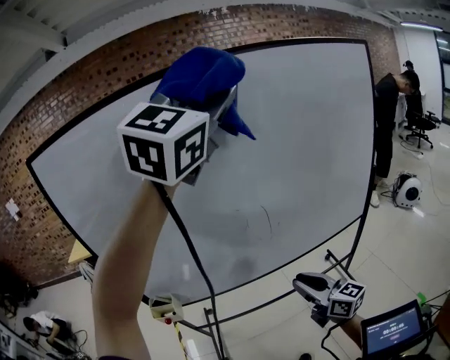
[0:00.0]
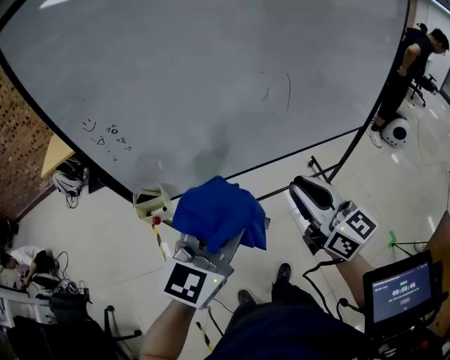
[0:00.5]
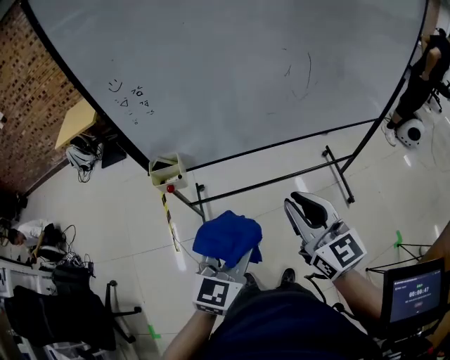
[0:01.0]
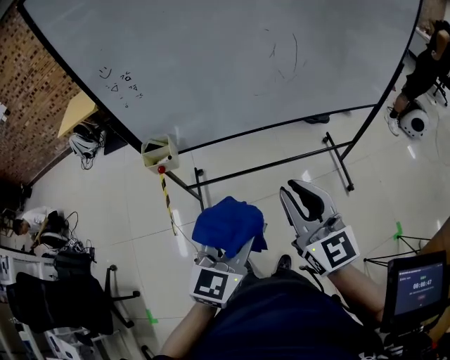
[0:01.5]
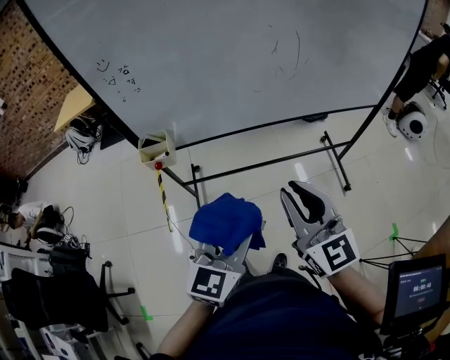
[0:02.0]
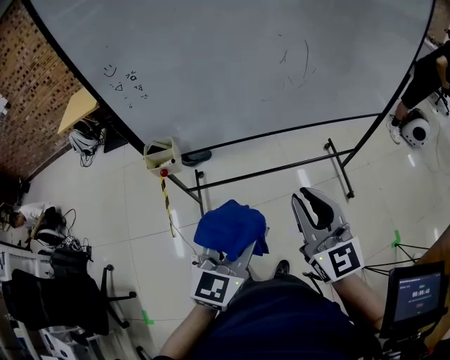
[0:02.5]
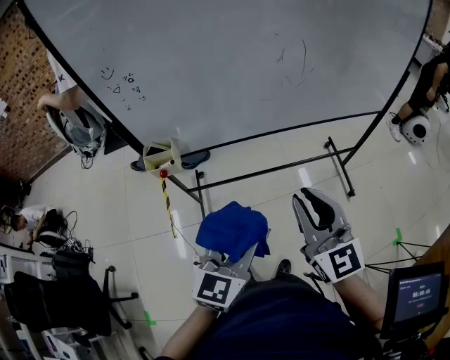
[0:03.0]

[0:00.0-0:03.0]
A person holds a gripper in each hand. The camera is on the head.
0:00.0 to 0:01.5: The right gripper shifts about 20 cm backward and to the left, and changes its angle by some 30 degrees. The left gripper is displaced downward and backward by some 60 cm, and changes its angle by roughly 40 degrees.
0:01.5 to 0:03.0: There are only small adjustments of the grippers.

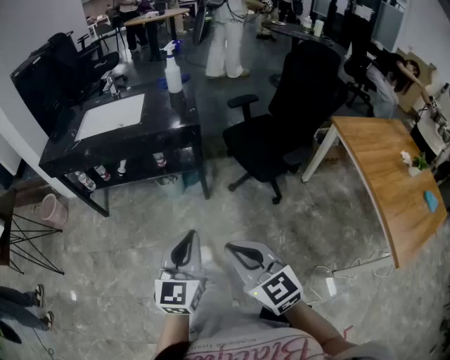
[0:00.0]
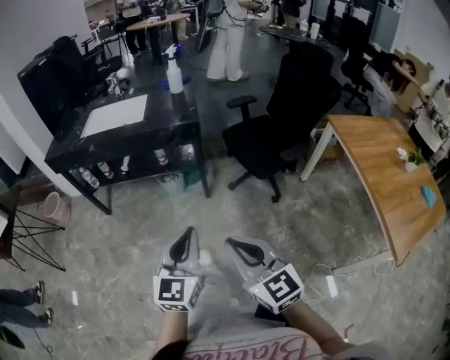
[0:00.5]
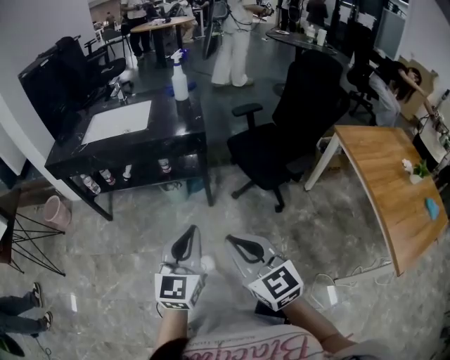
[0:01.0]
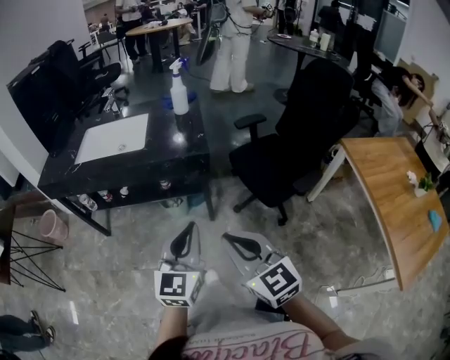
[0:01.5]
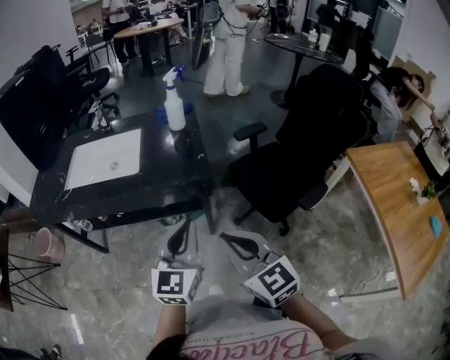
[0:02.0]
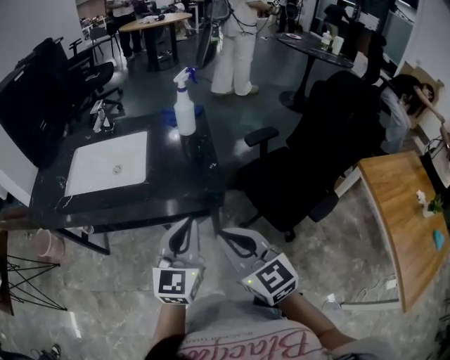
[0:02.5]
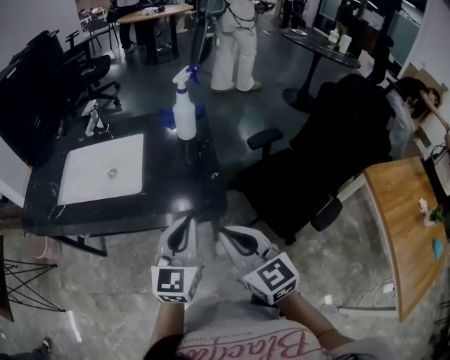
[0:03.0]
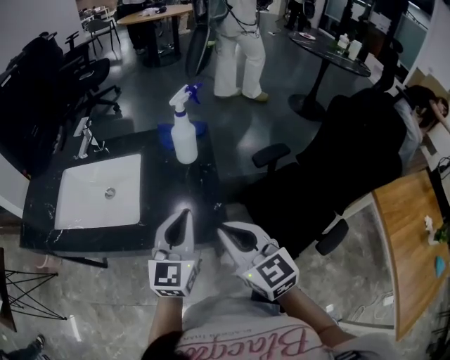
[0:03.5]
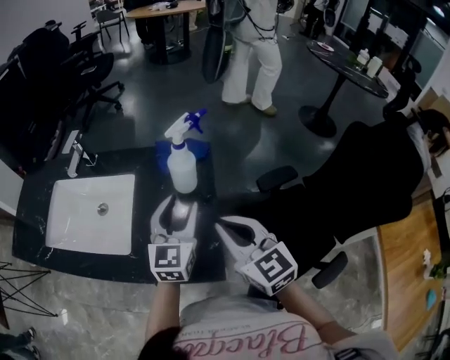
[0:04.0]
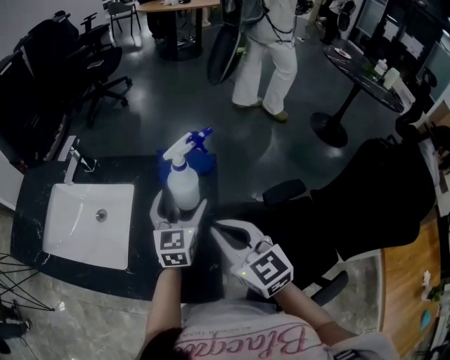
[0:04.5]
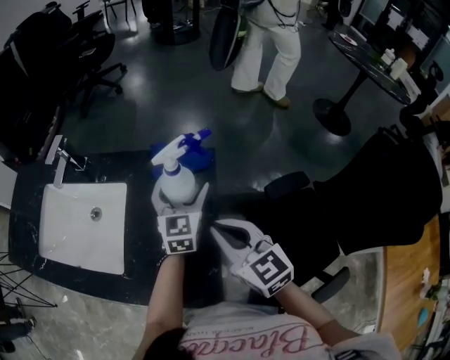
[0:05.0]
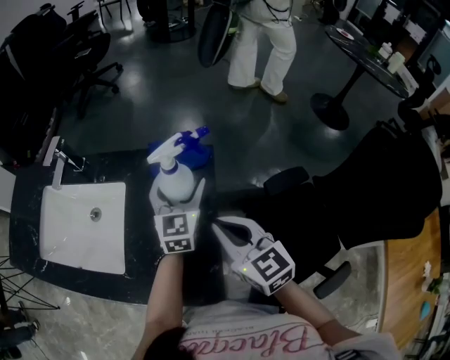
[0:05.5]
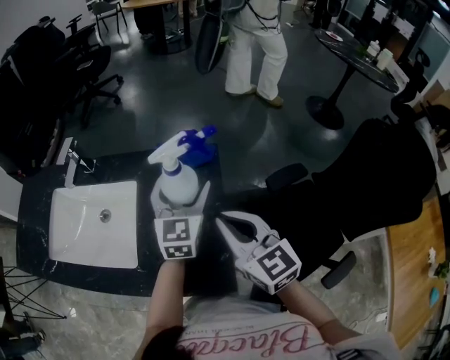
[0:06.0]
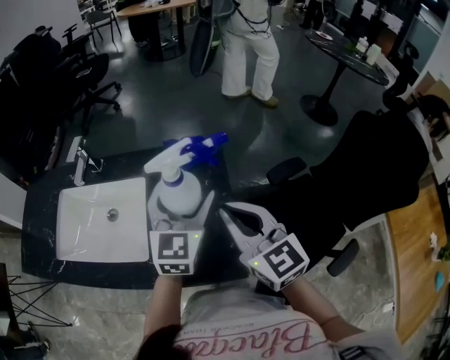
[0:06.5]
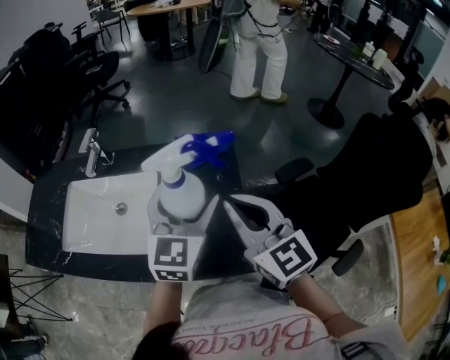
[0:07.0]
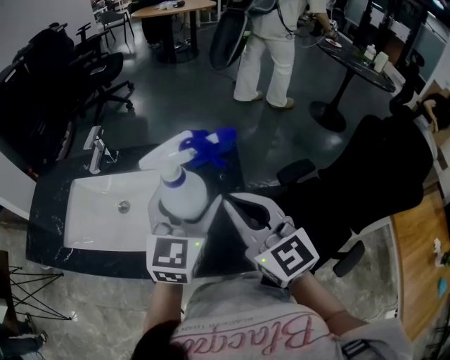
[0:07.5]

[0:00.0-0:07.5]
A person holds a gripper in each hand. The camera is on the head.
0:00.0 to 0:02.0: Both grippers move forward, about 25 cm.
0:02.0 to 0:04.0: The grippers both shift forward by approximately 35 cm. The left gripper opens up.
0:04.0 to 0:05.5: The right gripper is displaced forward by roughly 5 cm; the left gripper travels forward by about 15 cm, and opens up.
0:05.5 to 0:07.5: The left gripper is displaced backward, upward and to the left by about 20 cm; the right gripper moves upward, to the left and backward, roughly 15 cm, and rotates some 20 degrees.

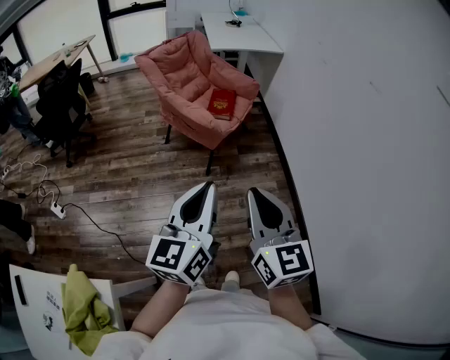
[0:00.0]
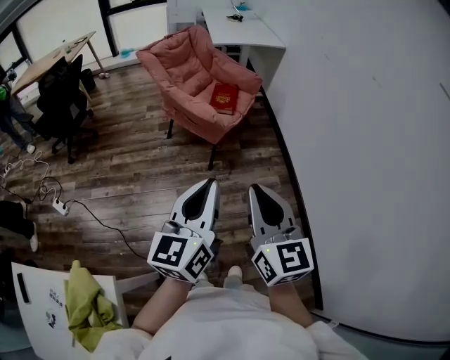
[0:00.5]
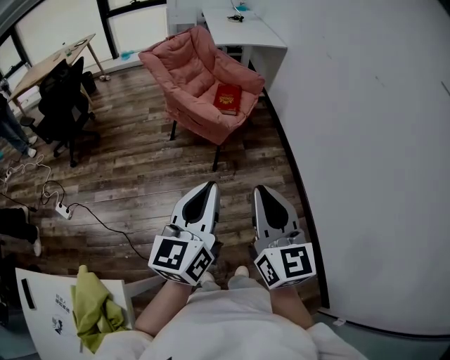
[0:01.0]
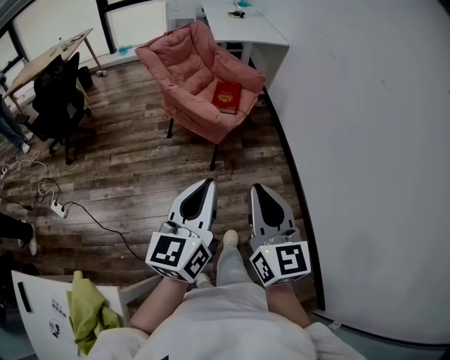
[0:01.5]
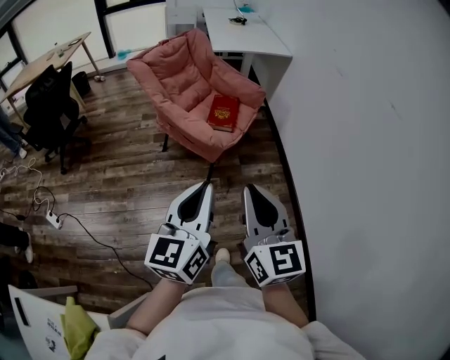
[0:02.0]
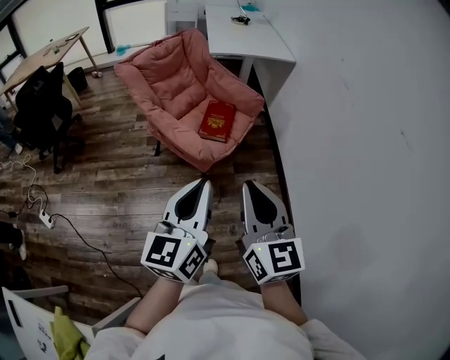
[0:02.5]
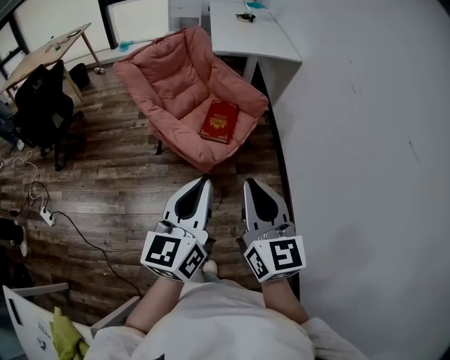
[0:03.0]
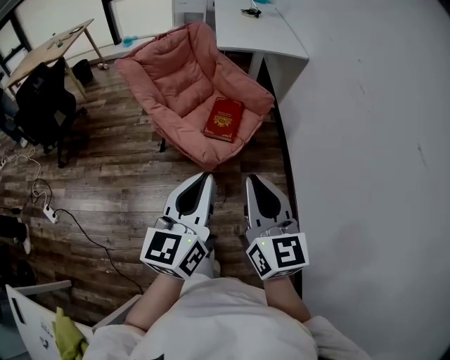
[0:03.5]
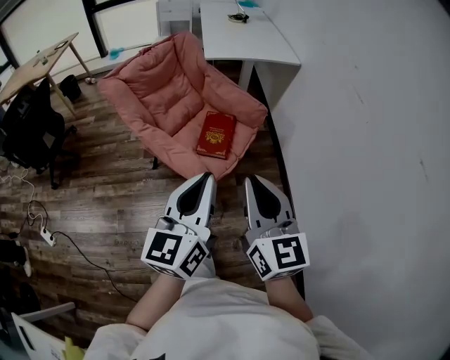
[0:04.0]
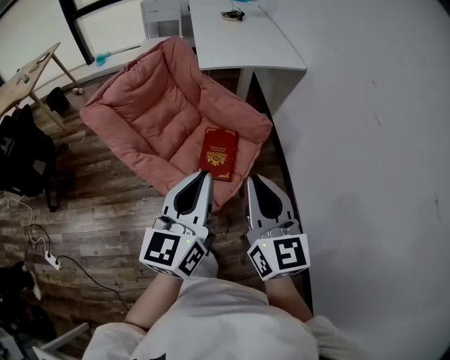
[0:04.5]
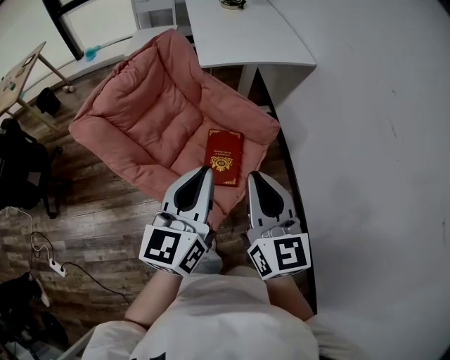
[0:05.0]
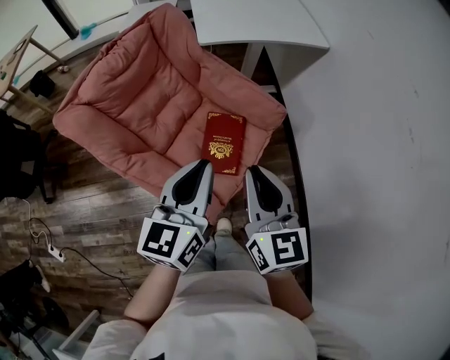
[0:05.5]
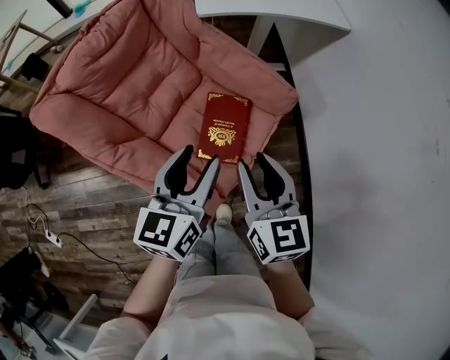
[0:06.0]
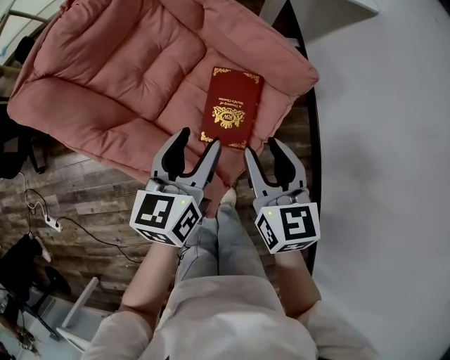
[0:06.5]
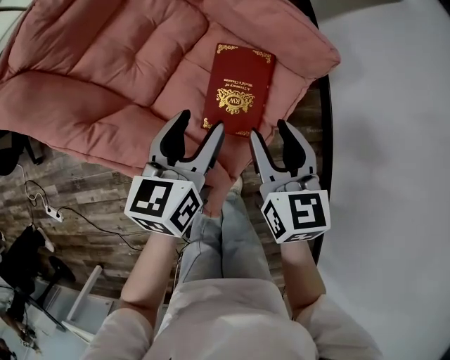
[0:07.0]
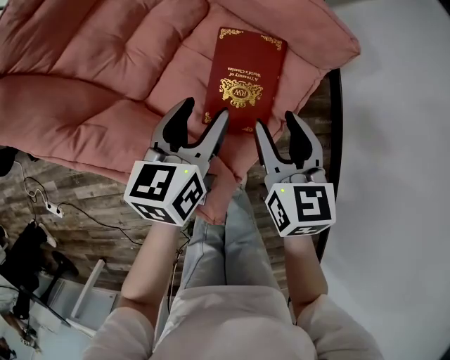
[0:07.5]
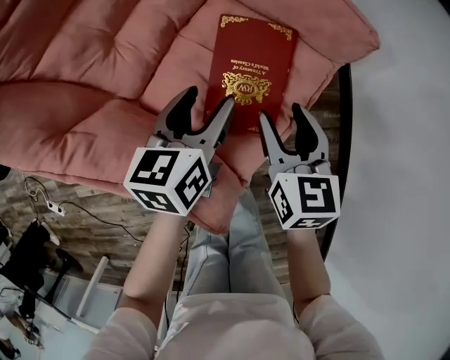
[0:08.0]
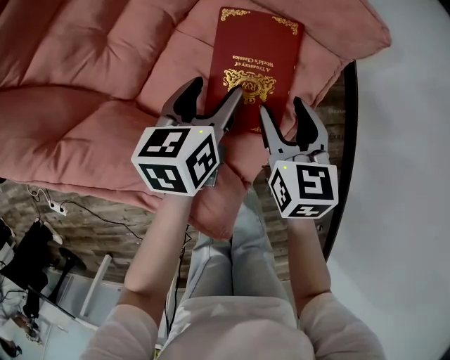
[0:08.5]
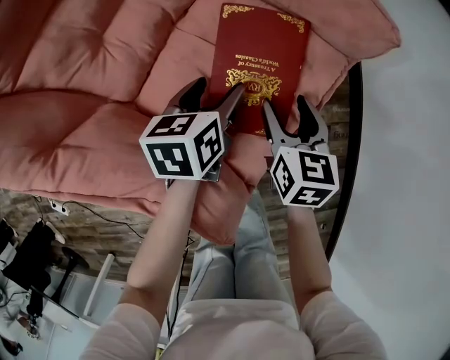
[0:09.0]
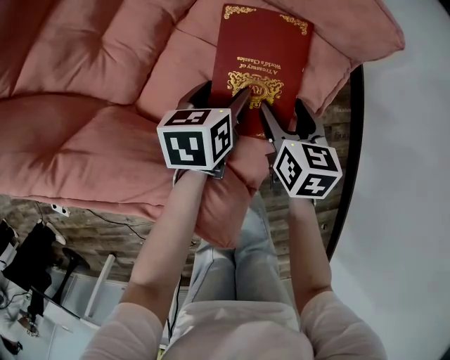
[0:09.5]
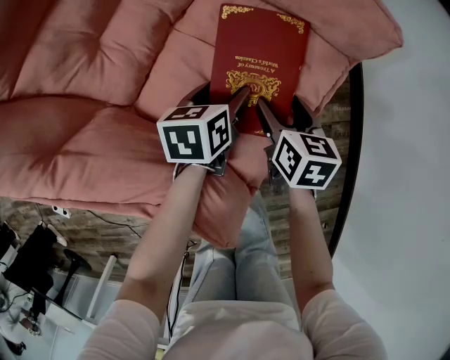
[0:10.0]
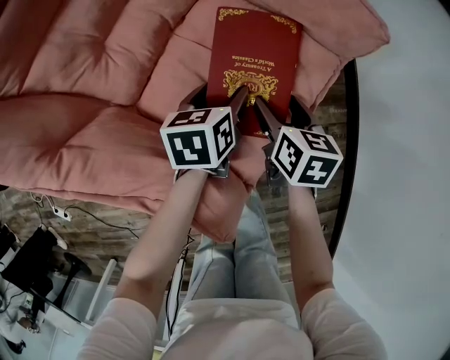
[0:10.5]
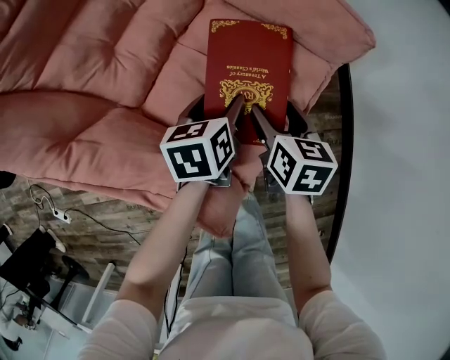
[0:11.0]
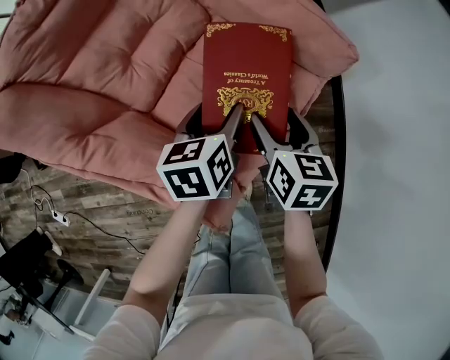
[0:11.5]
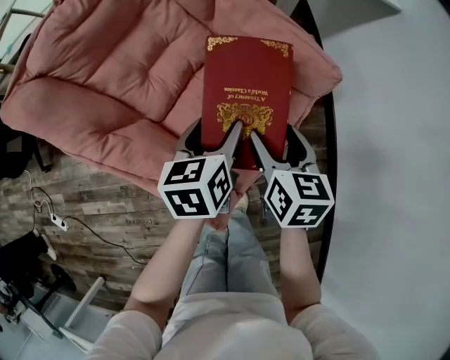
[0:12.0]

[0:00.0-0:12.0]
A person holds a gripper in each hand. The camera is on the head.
0:00.0 to 0:02.0: The grippers both shift forward by some 15 cm.
0:02.0 to 0:04.0: Both grippers move forward, some 25 cm.
0:04.0 to 0:06.0: Both grippers travel together forward and downward, about 40 cm. The left gripper opens its fingers. Meanwhile the right gripper opens its fingers.
0:06.0 to 0:08.0: Both grippers travel together downward, some 25 cm. The left gripper swivels approximately 20 degrees.
0:08.0 to 0:10.0: Both grippers move downward, roughly 15 cm. The right gripper changes its angle by some 20 degrees.
0:10.0 to 0:12.0: The two grippers go approximately 20 cm upward. The left gripper changes its angle by some 20 degrees.

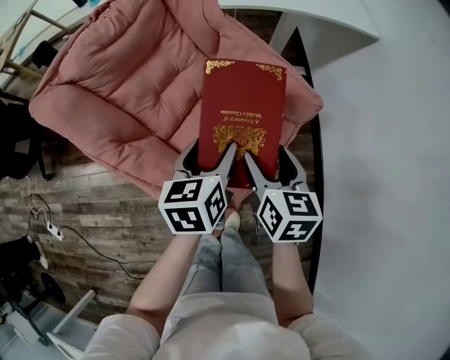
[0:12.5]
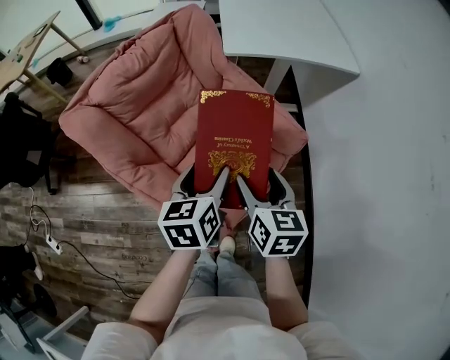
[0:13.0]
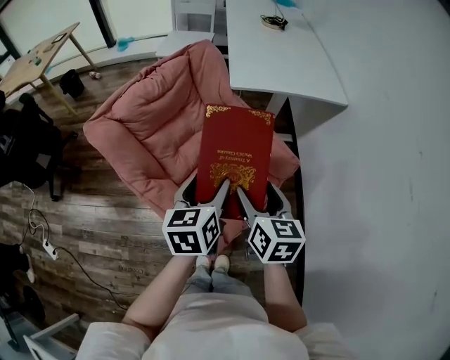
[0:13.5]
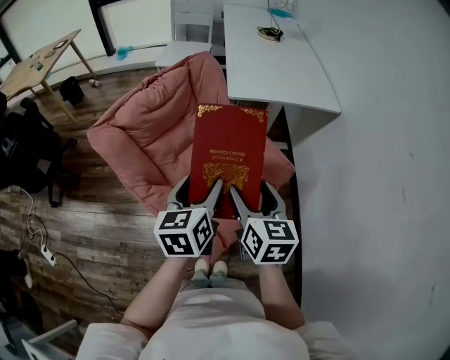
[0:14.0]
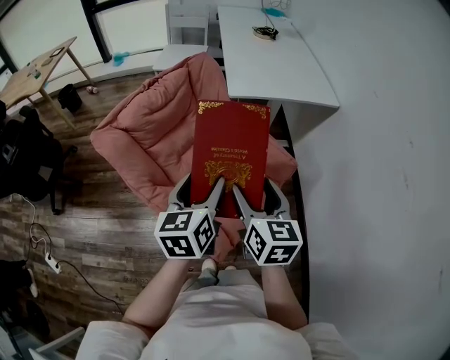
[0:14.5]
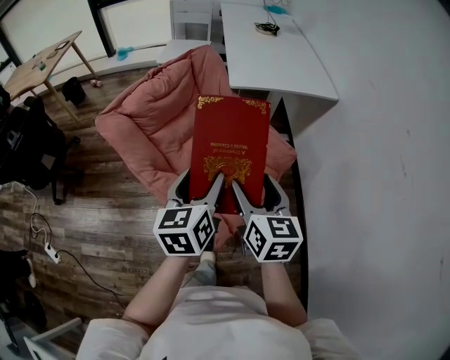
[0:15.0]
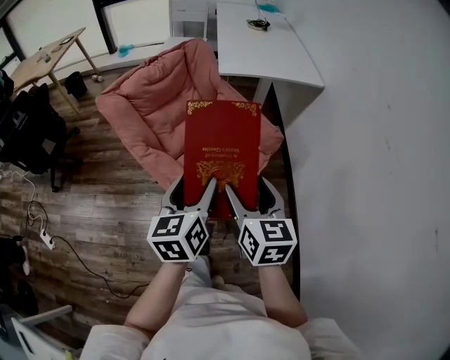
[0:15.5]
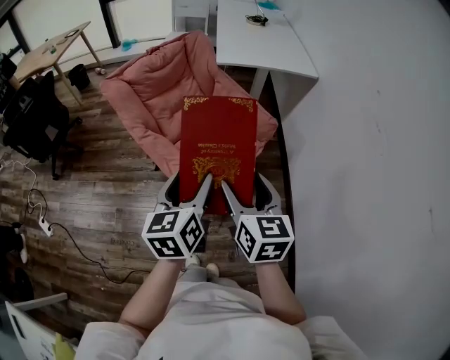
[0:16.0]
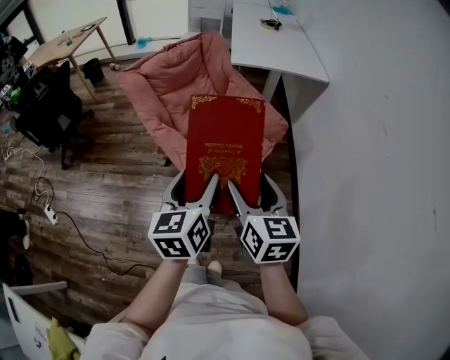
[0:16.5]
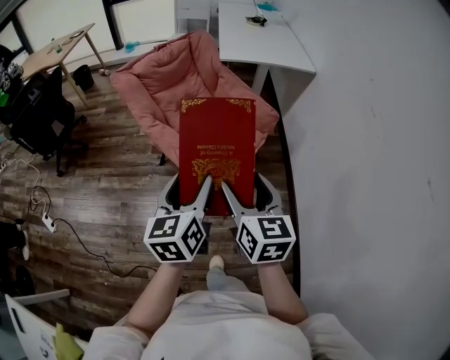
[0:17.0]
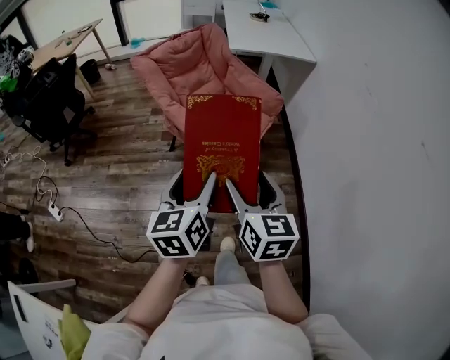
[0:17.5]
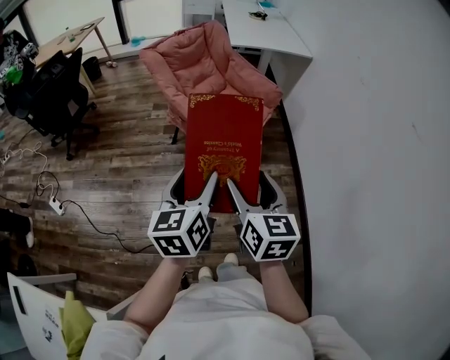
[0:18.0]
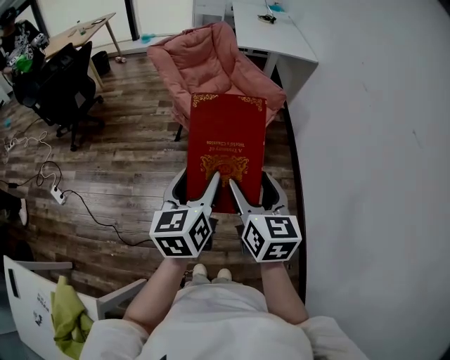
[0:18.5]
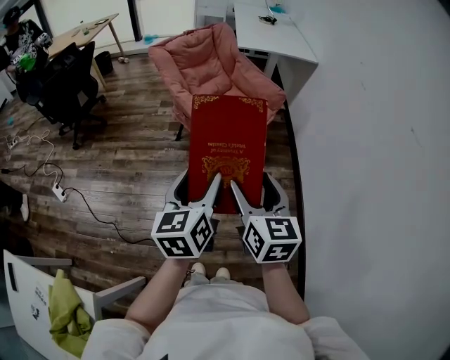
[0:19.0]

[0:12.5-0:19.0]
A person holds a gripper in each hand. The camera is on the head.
0:12.5 to 0:14.5: The two grippers go approximately 20 cm upward.
0:14.5 to 0:17.0: The two grippers go roughly 35 cm backward.
0:17.0 to 0:19.0: Both grippers move backward, approximately 25 cm.
